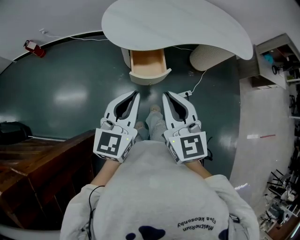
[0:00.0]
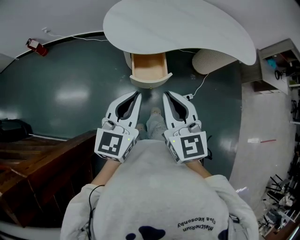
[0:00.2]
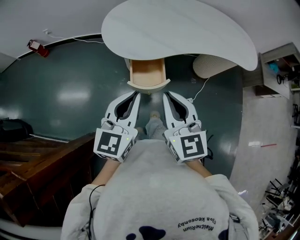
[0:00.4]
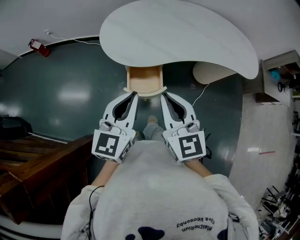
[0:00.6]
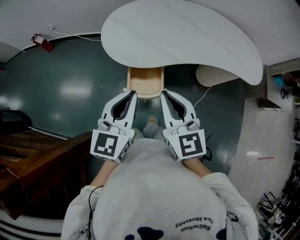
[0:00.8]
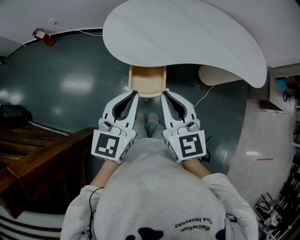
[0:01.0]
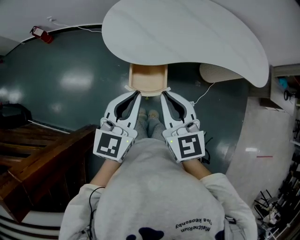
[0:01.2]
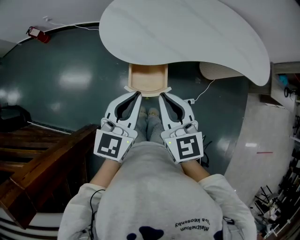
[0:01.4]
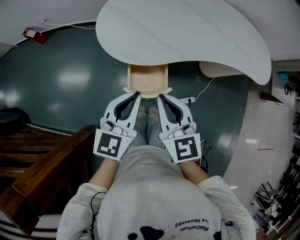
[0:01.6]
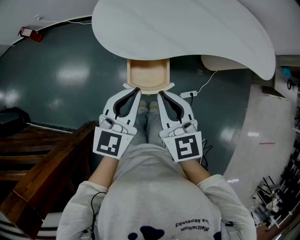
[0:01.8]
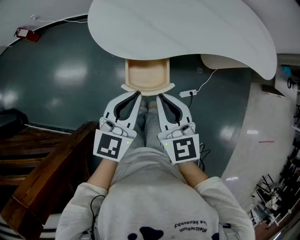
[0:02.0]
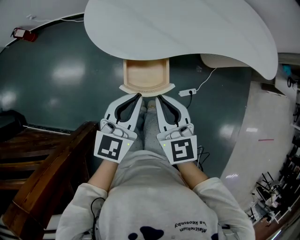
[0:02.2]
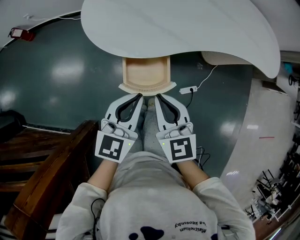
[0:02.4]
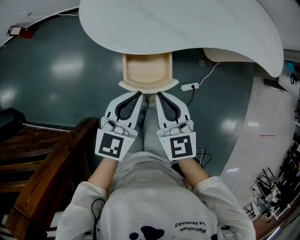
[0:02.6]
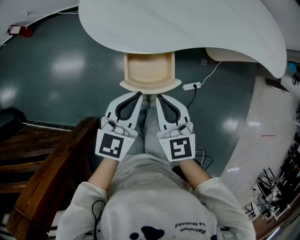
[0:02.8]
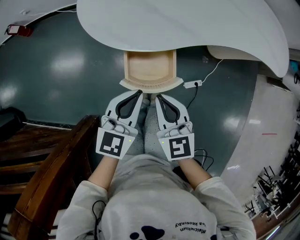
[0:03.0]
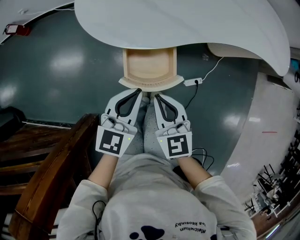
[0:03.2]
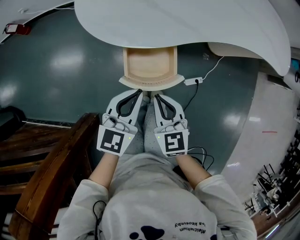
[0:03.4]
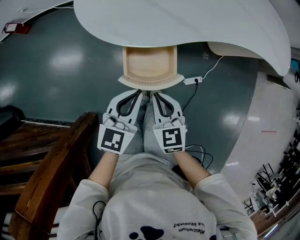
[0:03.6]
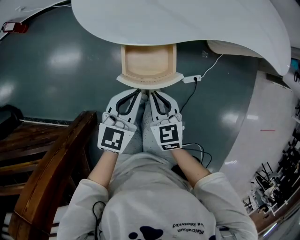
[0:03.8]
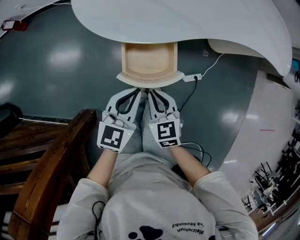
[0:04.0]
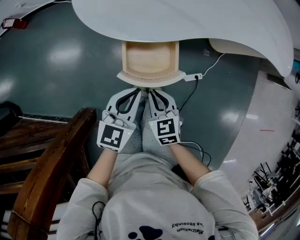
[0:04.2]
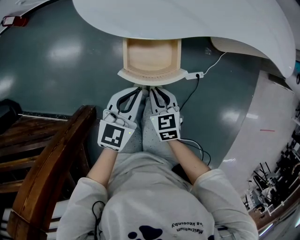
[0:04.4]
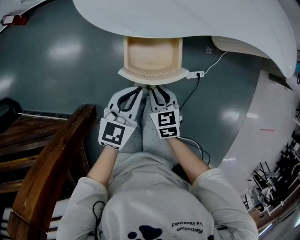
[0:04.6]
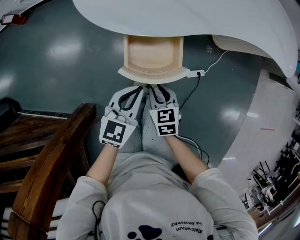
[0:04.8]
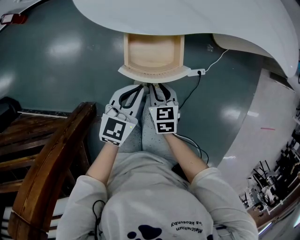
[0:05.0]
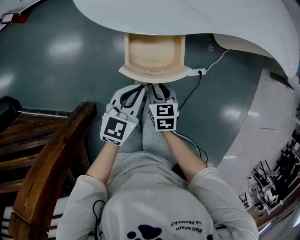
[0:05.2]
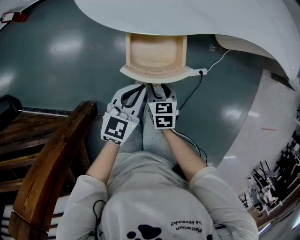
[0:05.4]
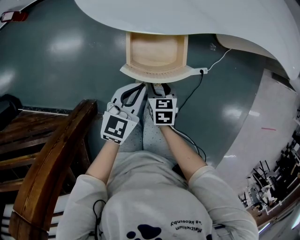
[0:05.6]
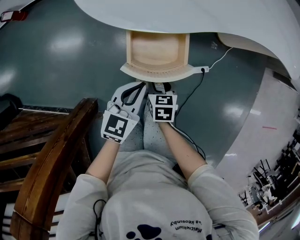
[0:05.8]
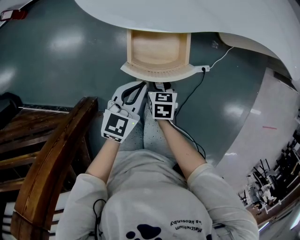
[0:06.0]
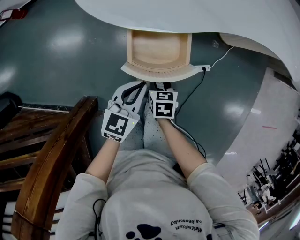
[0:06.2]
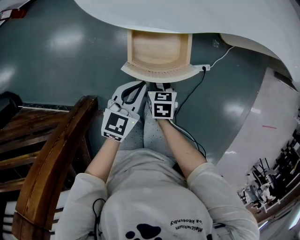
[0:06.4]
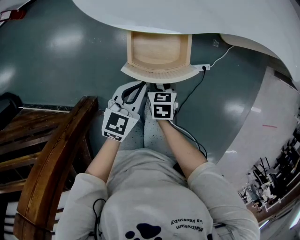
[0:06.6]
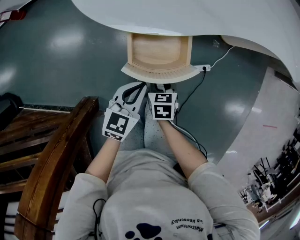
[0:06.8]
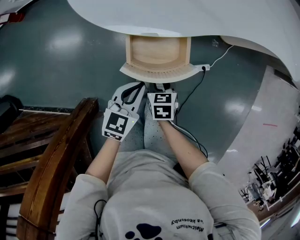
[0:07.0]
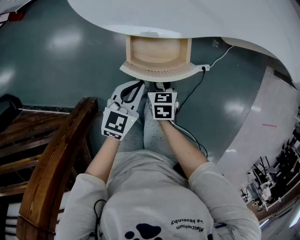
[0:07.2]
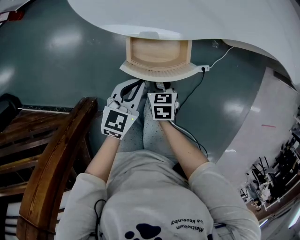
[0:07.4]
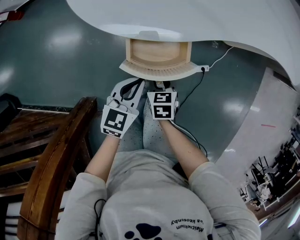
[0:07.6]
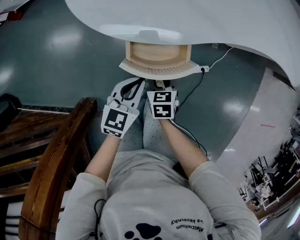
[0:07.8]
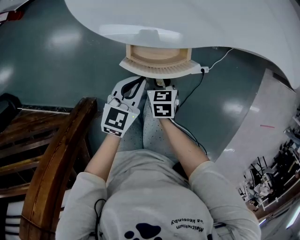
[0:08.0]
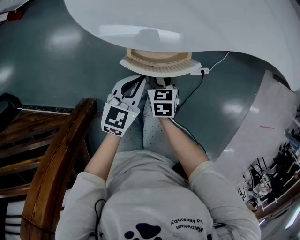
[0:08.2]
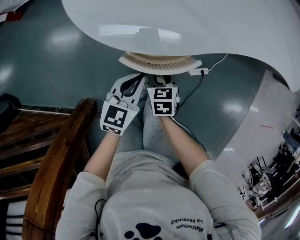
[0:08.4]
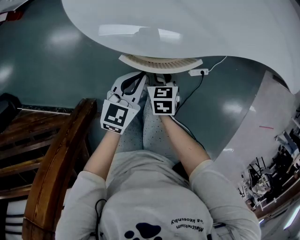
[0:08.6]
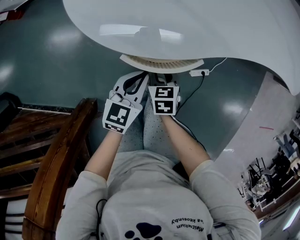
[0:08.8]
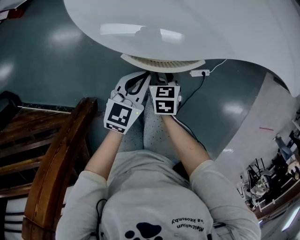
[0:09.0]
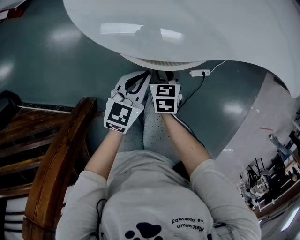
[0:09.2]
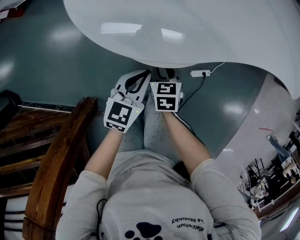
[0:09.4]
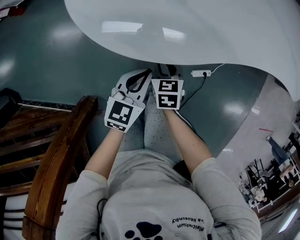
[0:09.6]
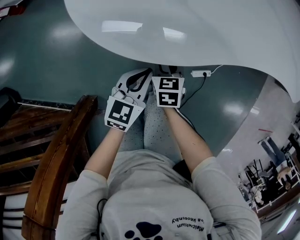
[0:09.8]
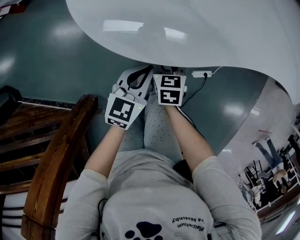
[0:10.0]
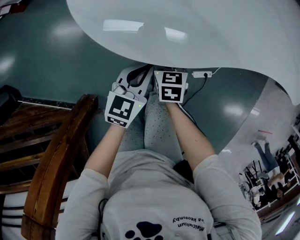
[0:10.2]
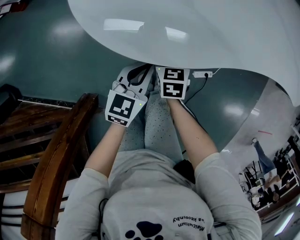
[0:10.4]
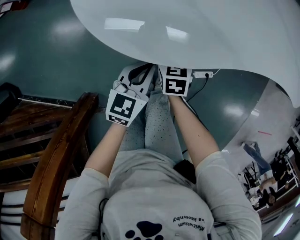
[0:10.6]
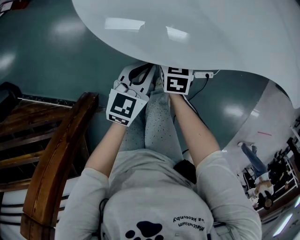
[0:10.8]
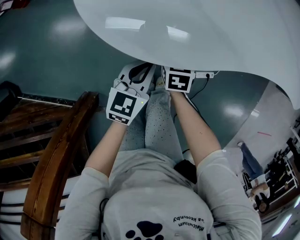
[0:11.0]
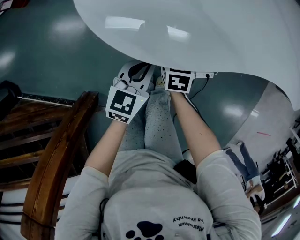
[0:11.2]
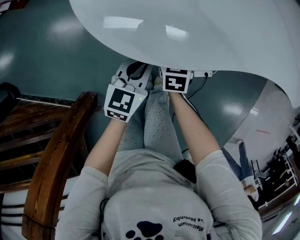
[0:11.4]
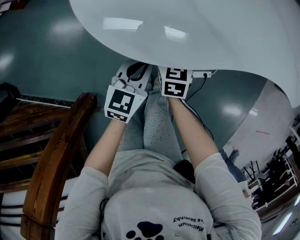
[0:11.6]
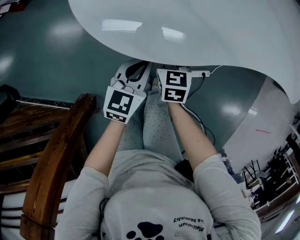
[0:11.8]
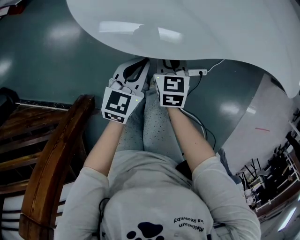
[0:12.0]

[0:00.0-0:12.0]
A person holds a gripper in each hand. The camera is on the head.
0:00.0 to 0:01.6: Both grippers travel together forward and downward, some 15 cm.
0:01.6 to 0:03.0: Both grippers travel together downward, some 15 cm.
0:03.0 to 0:04.4: The left gripper goes roughly 5 cm downward, while the right gripper heads downward, covering some 15 cm, and changes its angle by some 20 degrees.
0:04.4 to 0:06.0: The left gripper shifts about 5 cm downward. The right gripper moves downward, roughly 10 cm, swivels some 20 degrees, and opens up.
0:06.0 to 0:07.6: There are only small adjustments of the grippers.
0:07.6 to 0:09.0: Both grippers travel together forward, roughly 5 cm.
0:09.0 to 0:10.4: The right gripper moves forward, about 10 cm.
0:10.4 to 0:12.0: The right gripper is displaced upward by approximately 5 cm.

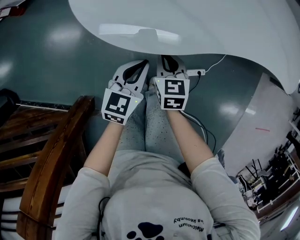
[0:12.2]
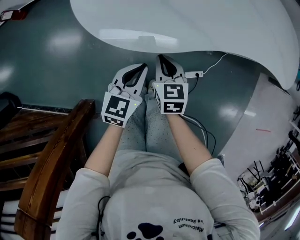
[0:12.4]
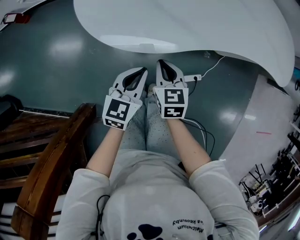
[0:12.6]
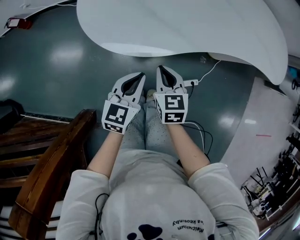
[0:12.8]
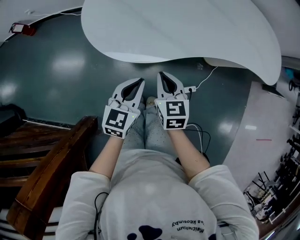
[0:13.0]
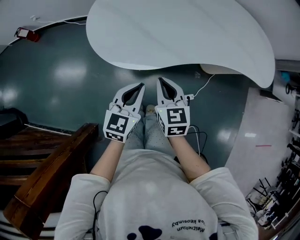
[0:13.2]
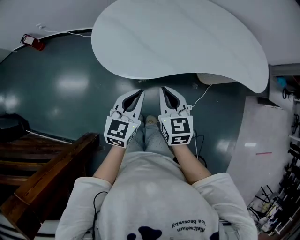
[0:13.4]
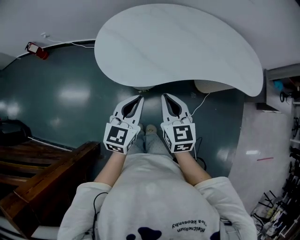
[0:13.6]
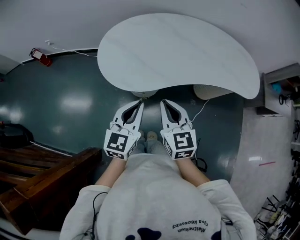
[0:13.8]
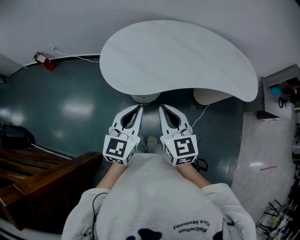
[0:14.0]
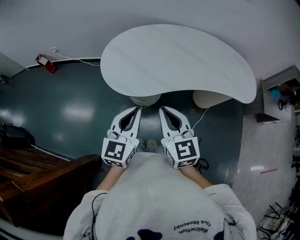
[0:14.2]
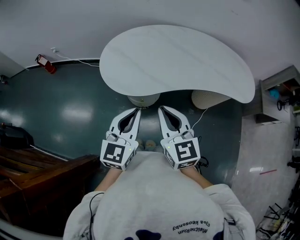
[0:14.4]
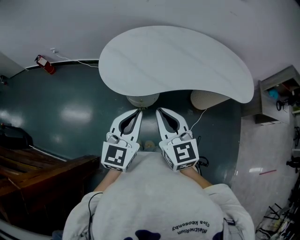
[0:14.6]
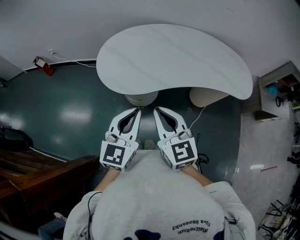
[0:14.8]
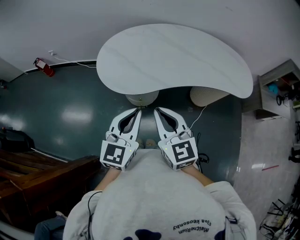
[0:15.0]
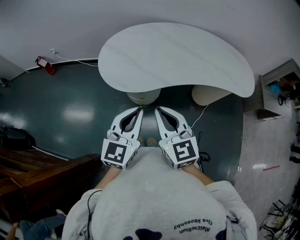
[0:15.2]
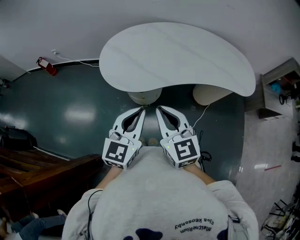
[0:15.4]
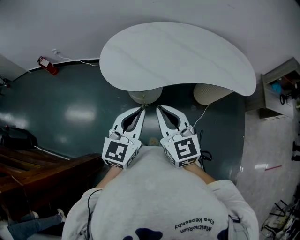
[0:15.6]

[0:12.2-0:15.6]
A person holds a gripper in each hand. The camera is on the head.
0:12.2 to 0:13.8: Both grippers travel together upward, some 30 cm. The right gripper rotates approximately 20 degrees.
0:13.8 to 0:15.6: Both grippers move backward and upward, some 10 cm.

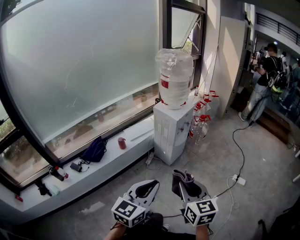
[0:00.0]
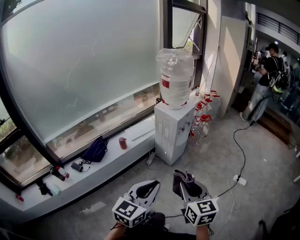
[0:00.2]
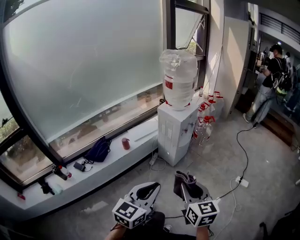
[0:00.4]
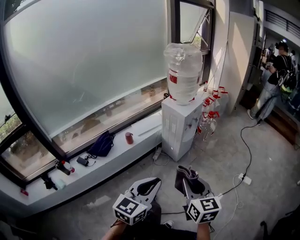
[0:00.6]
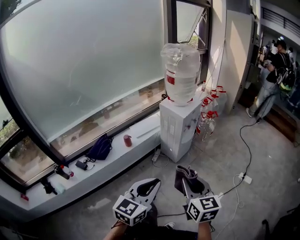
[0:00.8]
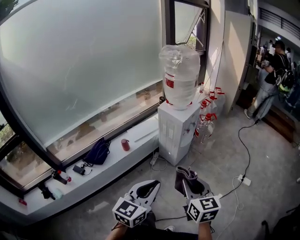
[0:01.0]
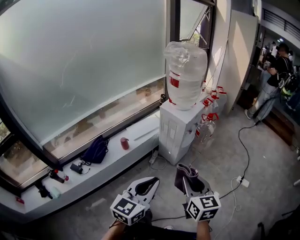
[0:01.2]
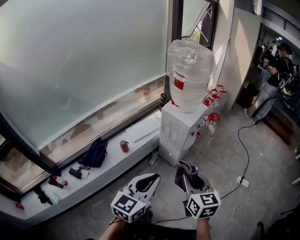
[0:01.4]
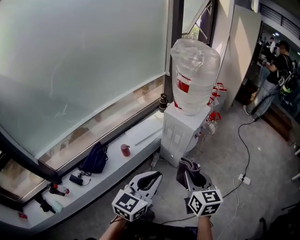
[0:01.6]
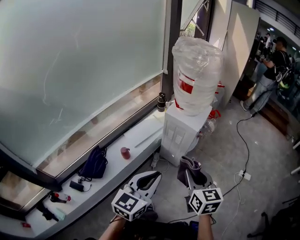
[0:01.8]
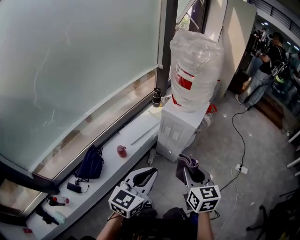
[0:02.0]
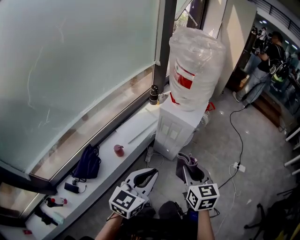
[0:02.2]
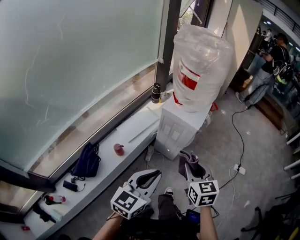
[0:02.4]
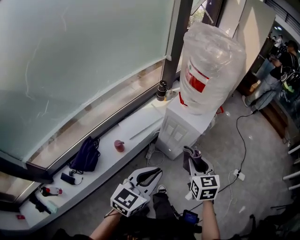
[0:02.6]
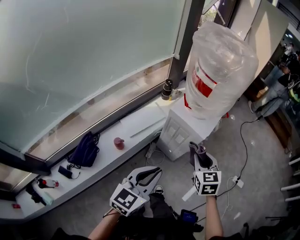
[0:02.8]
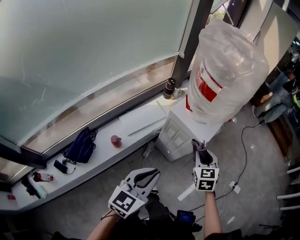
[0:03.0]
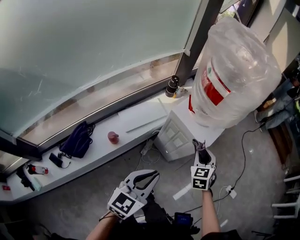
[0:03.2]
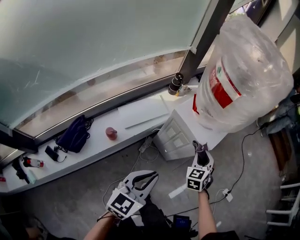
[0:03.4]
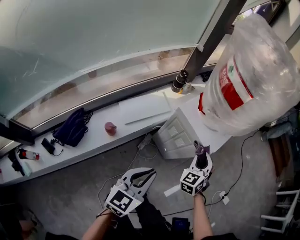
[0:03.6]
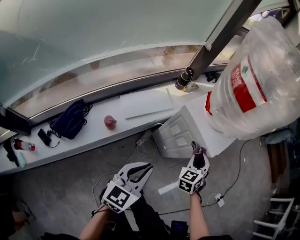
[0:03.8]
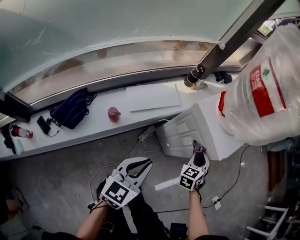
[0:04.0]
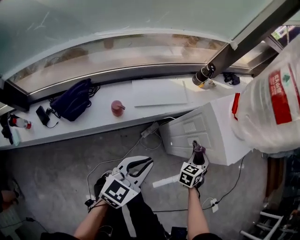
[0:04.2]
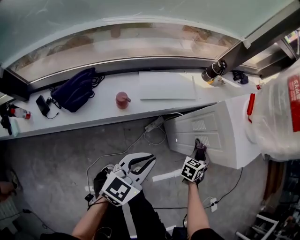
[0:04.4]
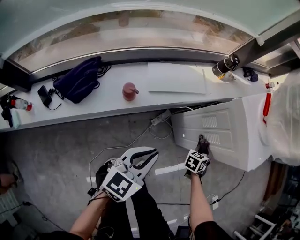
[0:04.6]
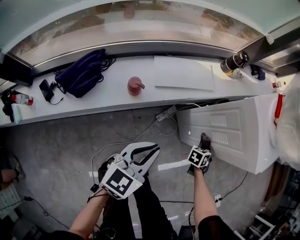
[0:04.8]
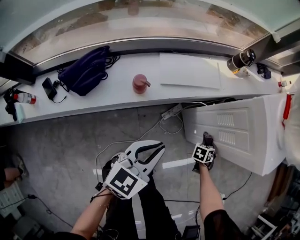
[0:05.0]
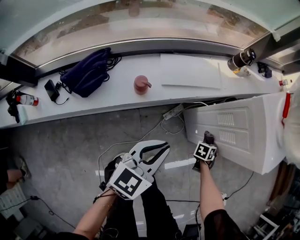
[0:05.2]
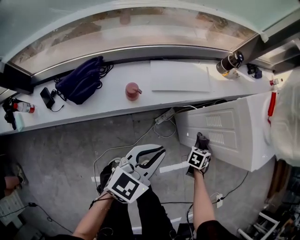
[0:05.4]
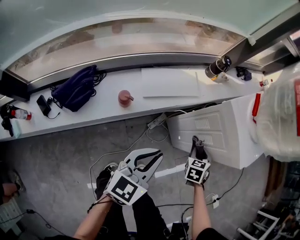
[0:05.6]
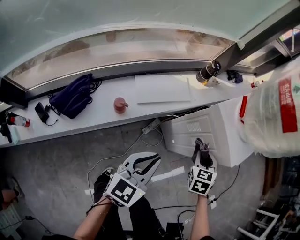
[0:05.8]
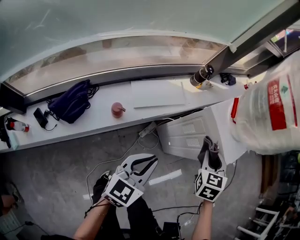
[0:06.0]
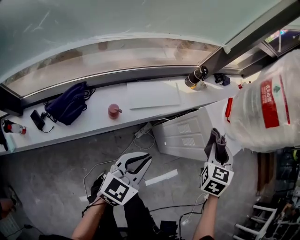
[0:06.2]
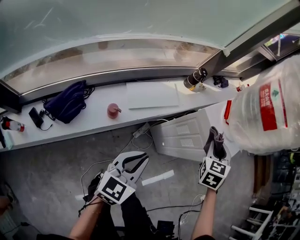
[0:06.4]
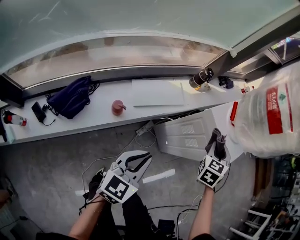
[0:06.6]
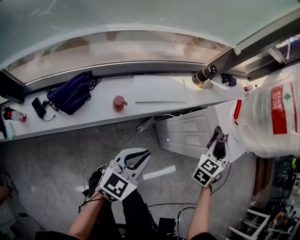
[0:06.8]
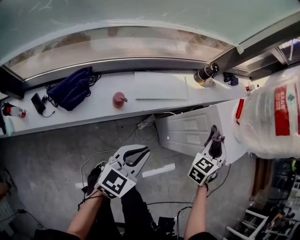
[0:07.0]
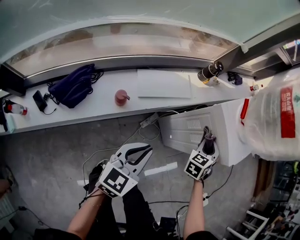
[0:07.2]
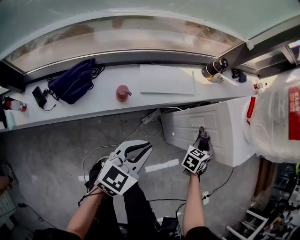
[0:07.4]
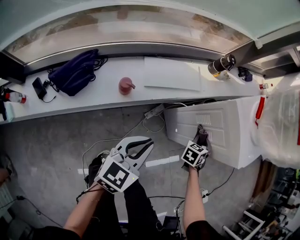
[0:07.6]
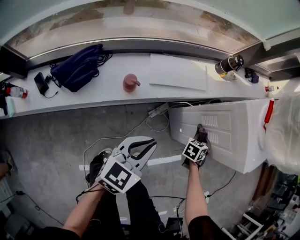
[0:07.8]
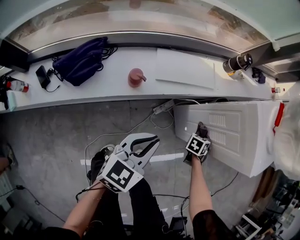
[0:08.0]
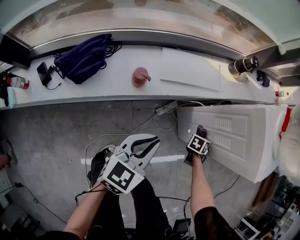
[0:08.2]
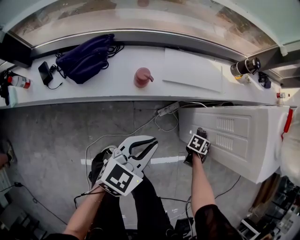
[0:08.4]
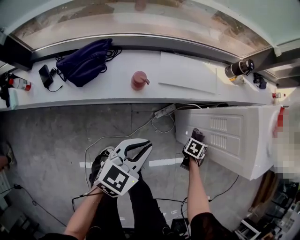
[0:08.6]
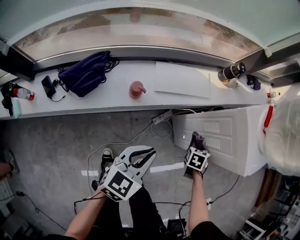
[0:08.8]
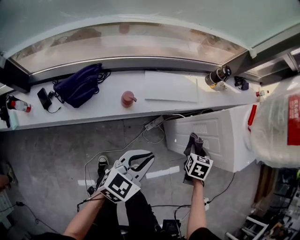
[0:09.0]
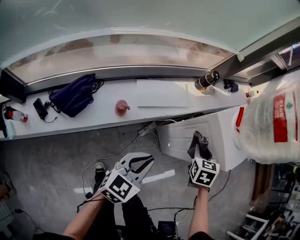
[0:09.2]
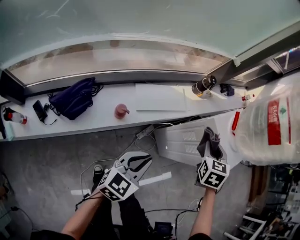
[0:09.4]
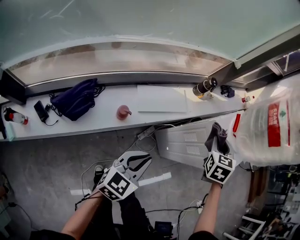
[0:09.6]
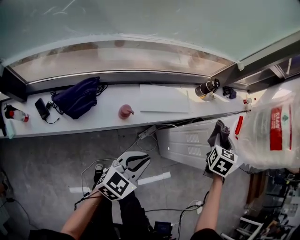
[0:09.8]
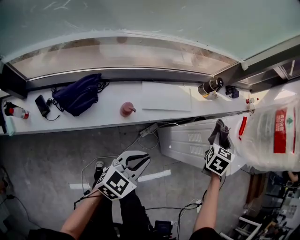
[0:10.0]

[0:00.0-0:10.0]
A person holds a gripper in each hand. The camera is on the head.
0:00.0 to 0:01.4: Both grippers move forward and to the left, about 20 cm.
0:01.4 to 0:02.8: The right gripper heads forward, covering about 30 cm, and turns by some 20 degrees; the left gripper heads forward and to the left, covering some 25 cm.
0:02.8 to 0:04.2: The left gripper is displaced downward by roughly 25 cm, and rotates about 20 degrees. The right gripper travels downward and forward by approximately 35 cm, and turns by roughly 30 degrees.
0:04.2 to 0:05.8: The right gripper reaches roughly 20 cm downward, then returns. The left gripper travels downward and back again, about 10 cm each way.
0:05.8 to 0:07.2: The right gripper goes upward and returns, roughly 15 cm each way.
0:07.2 to 0:08.6: The left gripper travels downward by some 10 cm. Meanwhile the right gripper is displaced downward by roughly 30 cm, and angles its fingers downward, by some 30 degrees.
0:08.6 to 0:10.0: The right gripper goes approximately 35 cm upward, and angles its fingers upward, by some 30 degrees. The left gripper goes approximately 10 cm upward.
